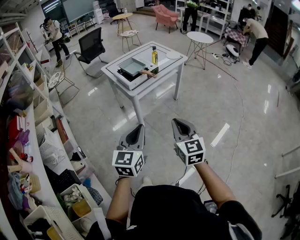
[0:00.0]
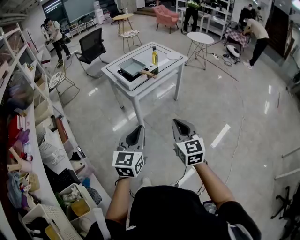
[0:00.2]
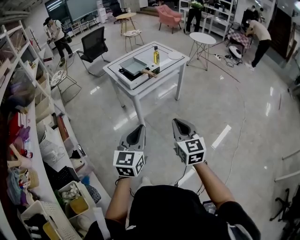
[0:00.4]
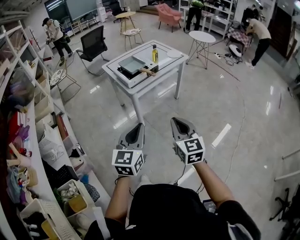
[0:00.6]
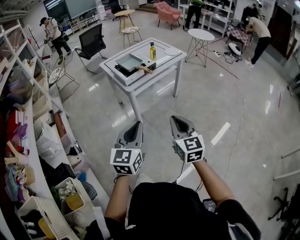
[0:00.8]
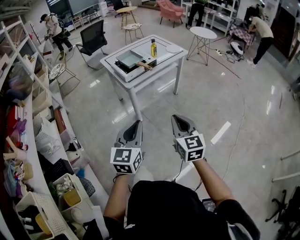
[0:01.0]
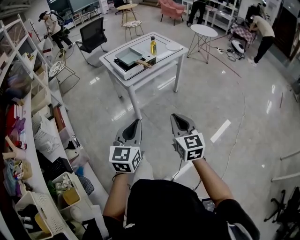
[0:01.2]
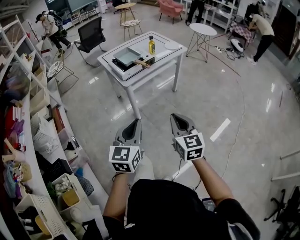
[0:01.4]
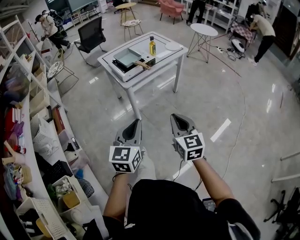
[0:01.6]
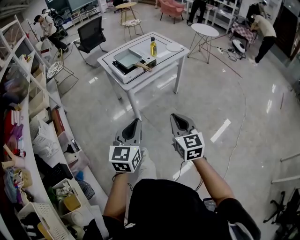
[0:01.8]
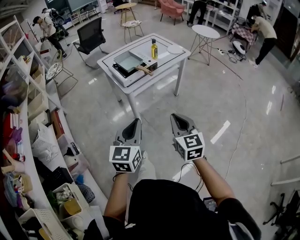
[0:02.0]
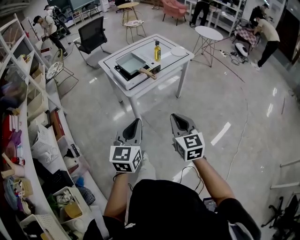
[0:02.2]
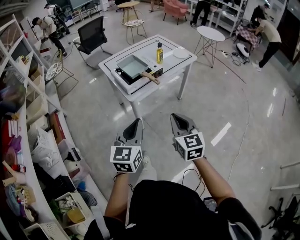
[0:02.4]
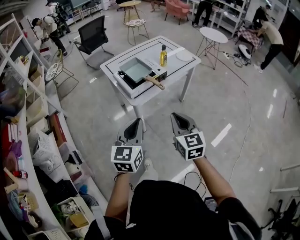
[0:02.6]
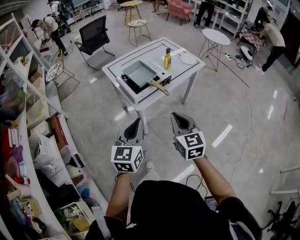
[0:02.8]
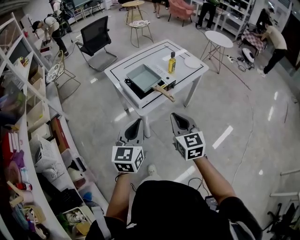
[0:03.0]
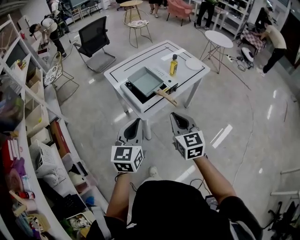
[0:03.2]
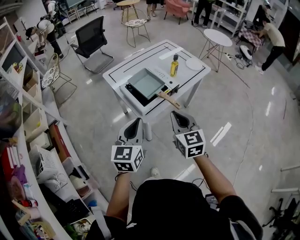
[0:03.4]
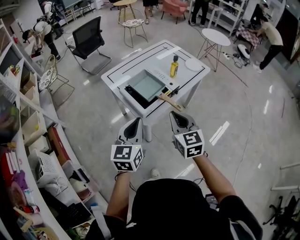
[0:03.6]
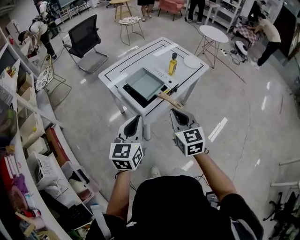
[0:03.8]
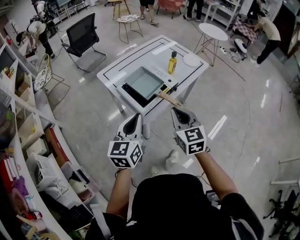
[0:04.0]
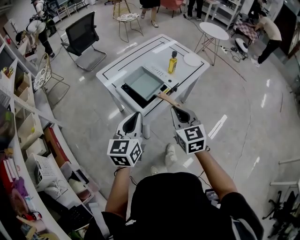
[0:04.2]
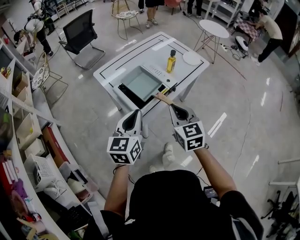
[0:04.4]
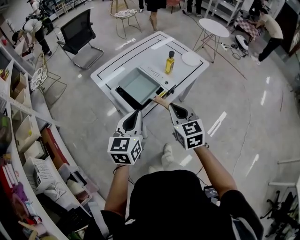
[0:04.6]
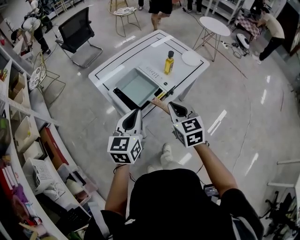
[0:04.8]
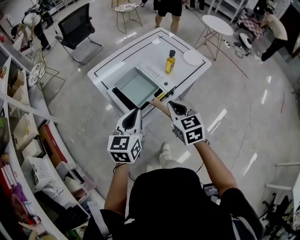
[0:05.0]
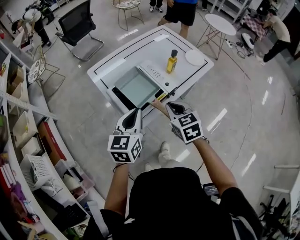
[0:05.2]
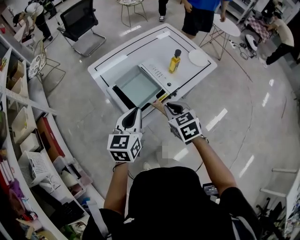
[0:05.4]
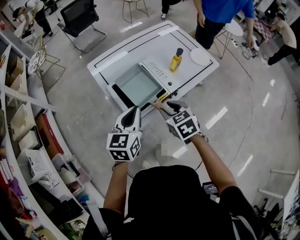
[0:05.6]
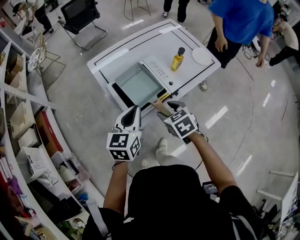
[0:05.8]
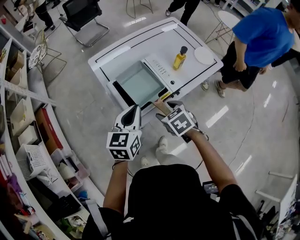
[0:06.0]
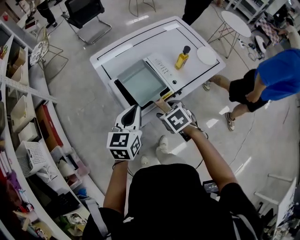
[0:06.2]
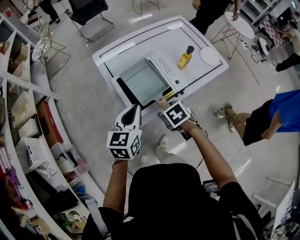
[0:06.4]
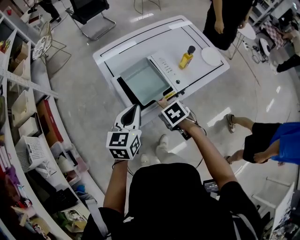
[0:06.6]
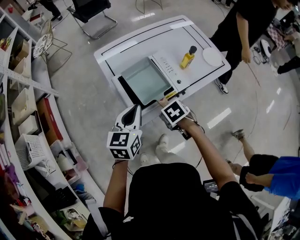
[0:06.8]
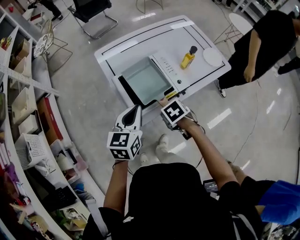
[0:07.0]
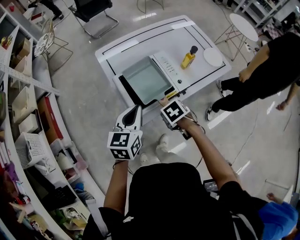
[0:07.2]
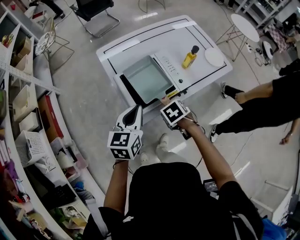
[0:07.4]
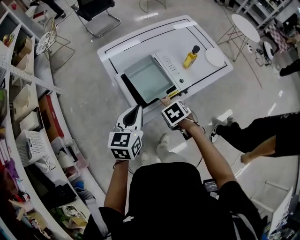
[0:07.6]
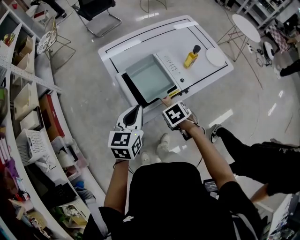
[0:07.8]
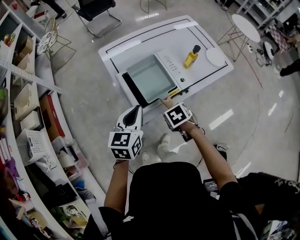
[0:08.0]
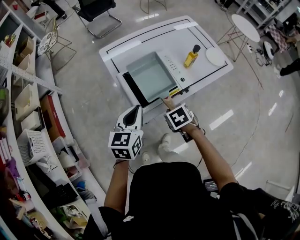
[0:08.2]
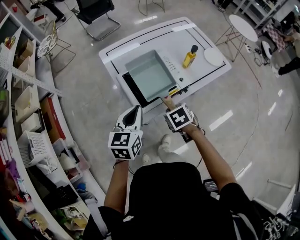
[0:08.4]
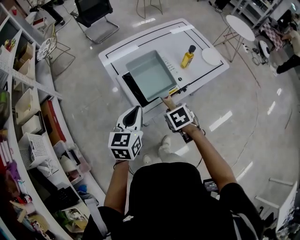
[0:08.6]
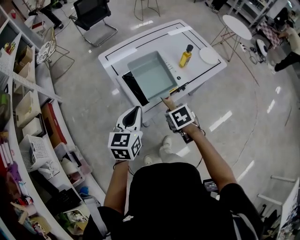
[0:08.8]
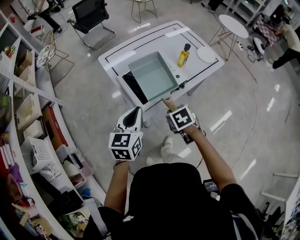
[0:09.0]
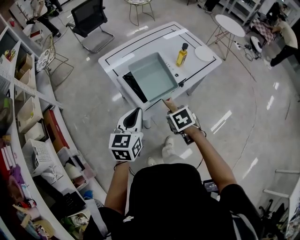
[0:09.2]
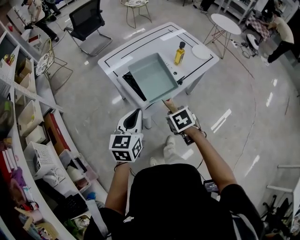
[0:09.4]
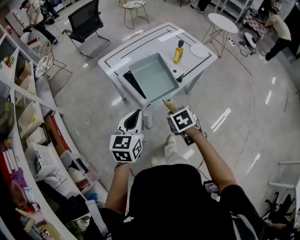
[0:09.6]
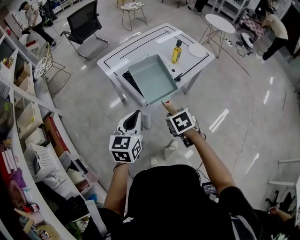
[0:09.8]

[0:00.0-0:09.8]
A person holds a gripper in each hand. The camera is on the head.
0:00.0 to 0:01.4: The two grippers go roughly 5 cm to the right.
0:01.4 to 0:02.8: The grippers both shift forward by some 25 cm.
0:02.8 to 0:04.2: The grippers both shift forward and to the left by roughly 20 cm.
0:04.2 to 0:05.6: Both grippers move forward and downward, approximately 15 cm. The right gripper rotates roughly 30 degrees, and opens its fingers.
0:05.6 to 0:07.0: The right gripper heads downward, covering about 10 cm, and tips its fingers downward by about 30 degrees.
0:07.0 to 0:08.4: The right gripper closes.
0:08.4 to 0:09.8: The grippers both shift backward by roughly 10 cm.

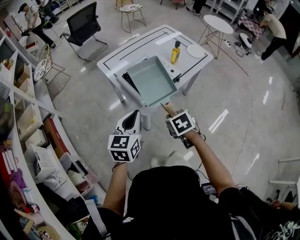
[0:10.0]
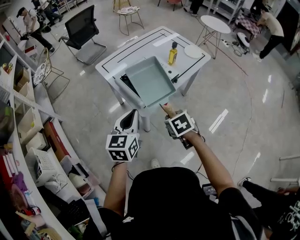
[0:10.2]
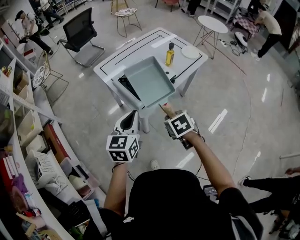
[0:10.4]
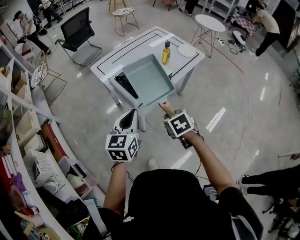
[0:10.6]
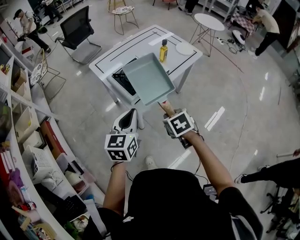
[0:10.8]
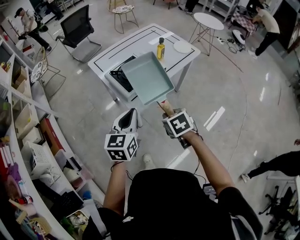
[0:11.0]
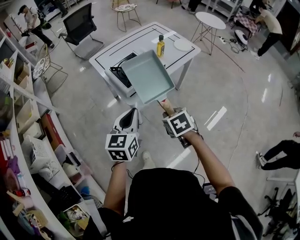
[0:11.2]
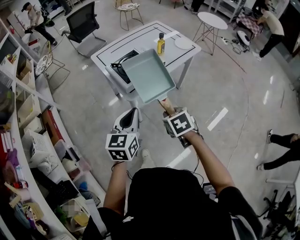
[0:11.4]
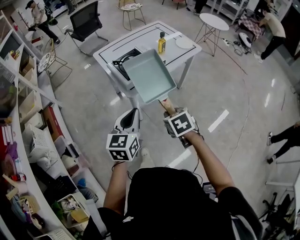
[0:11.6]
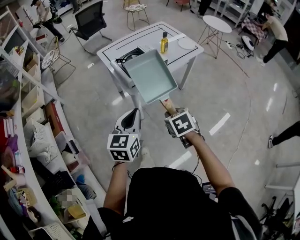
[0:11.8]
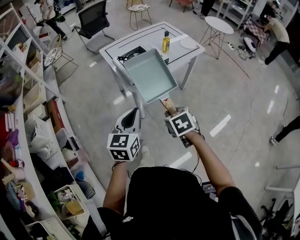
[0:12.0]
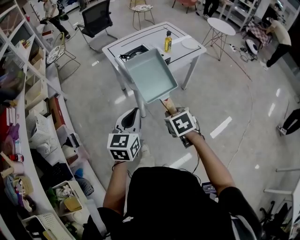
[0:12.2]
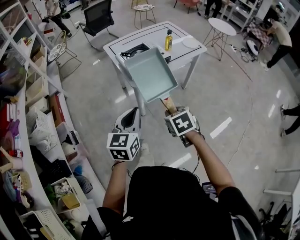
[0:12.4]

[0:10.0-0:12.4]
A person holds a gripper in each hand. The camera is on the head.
0:10.0 to 0:11.2: Both grippers travel together backward and to the right, approximately 10 cm.
0:11.2 to 0:12.4: Both grippers move backward, approximately 15 cm.

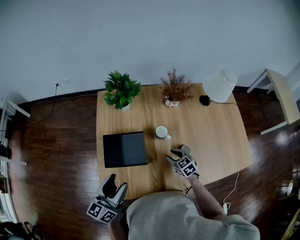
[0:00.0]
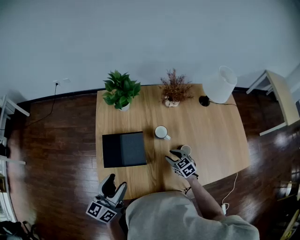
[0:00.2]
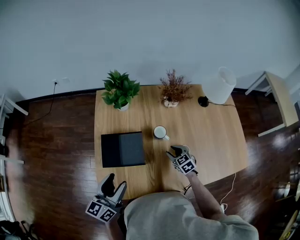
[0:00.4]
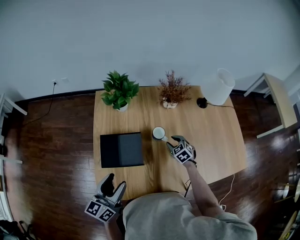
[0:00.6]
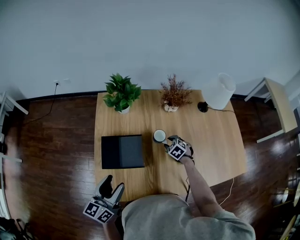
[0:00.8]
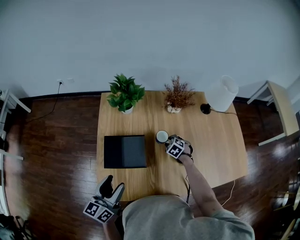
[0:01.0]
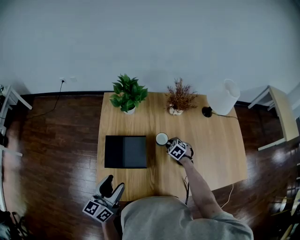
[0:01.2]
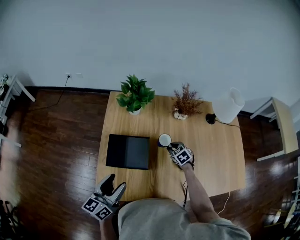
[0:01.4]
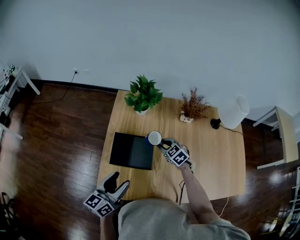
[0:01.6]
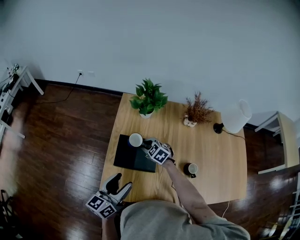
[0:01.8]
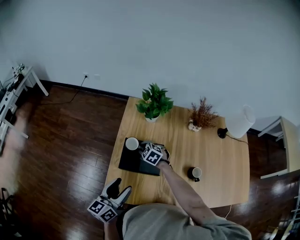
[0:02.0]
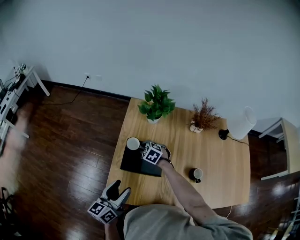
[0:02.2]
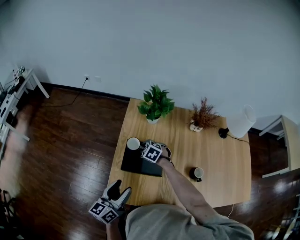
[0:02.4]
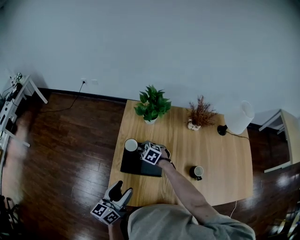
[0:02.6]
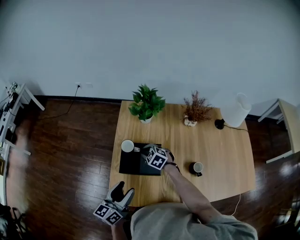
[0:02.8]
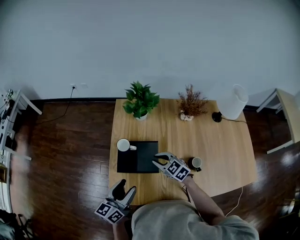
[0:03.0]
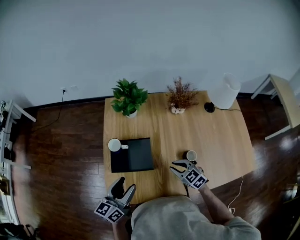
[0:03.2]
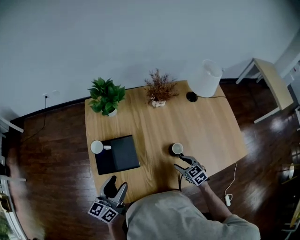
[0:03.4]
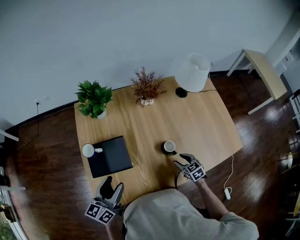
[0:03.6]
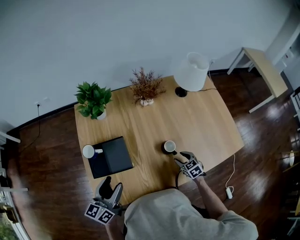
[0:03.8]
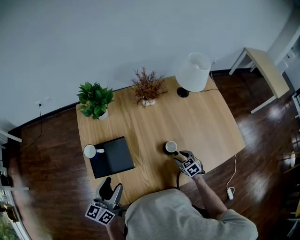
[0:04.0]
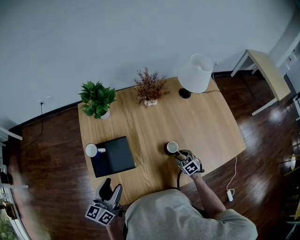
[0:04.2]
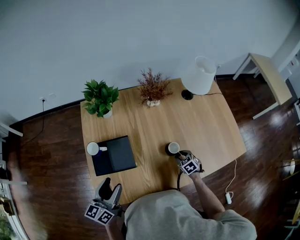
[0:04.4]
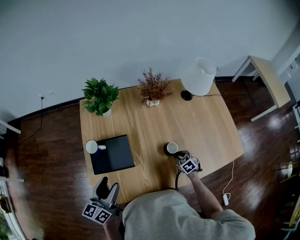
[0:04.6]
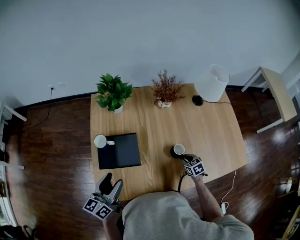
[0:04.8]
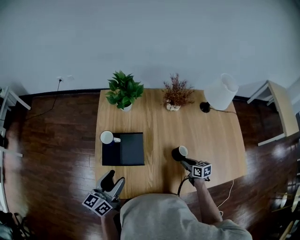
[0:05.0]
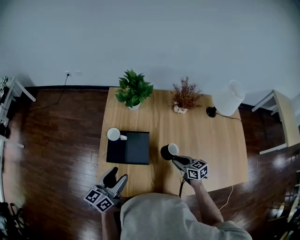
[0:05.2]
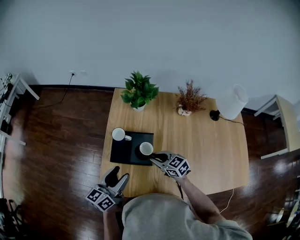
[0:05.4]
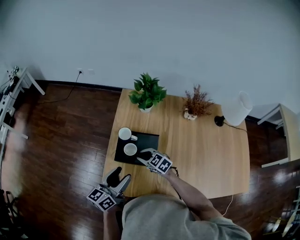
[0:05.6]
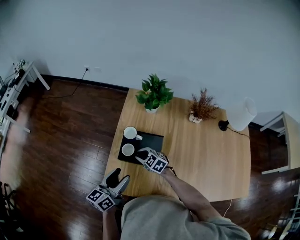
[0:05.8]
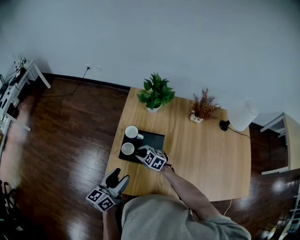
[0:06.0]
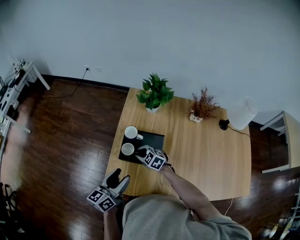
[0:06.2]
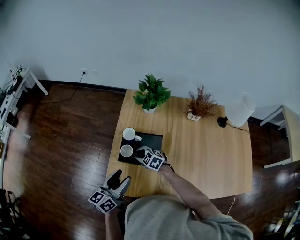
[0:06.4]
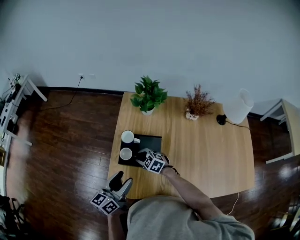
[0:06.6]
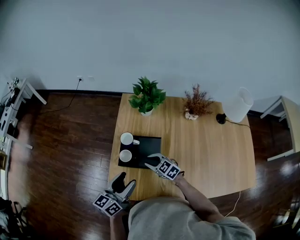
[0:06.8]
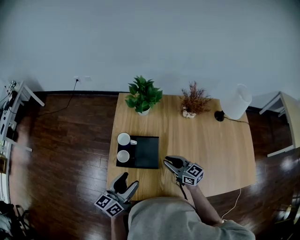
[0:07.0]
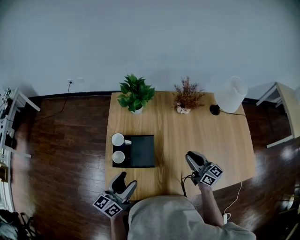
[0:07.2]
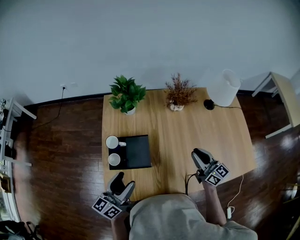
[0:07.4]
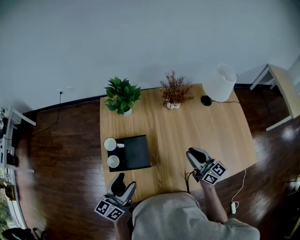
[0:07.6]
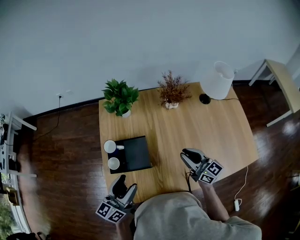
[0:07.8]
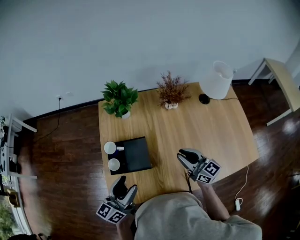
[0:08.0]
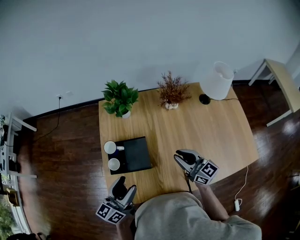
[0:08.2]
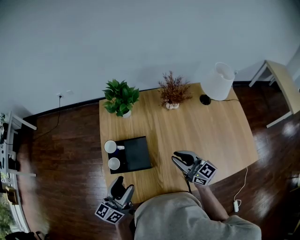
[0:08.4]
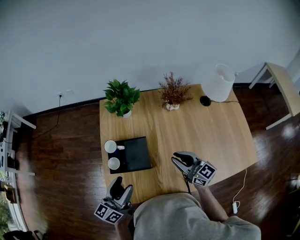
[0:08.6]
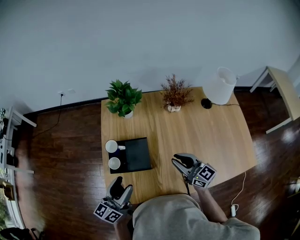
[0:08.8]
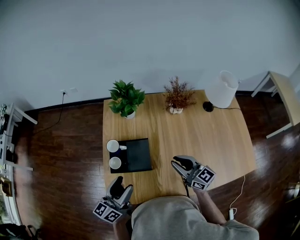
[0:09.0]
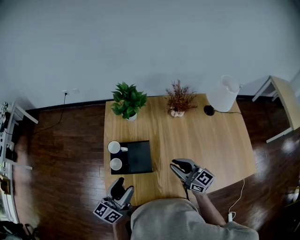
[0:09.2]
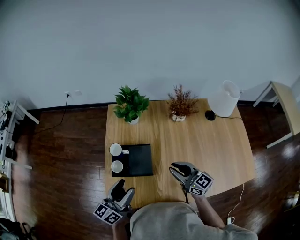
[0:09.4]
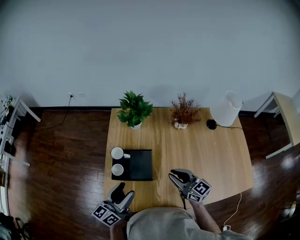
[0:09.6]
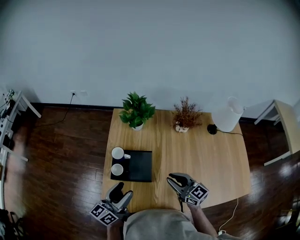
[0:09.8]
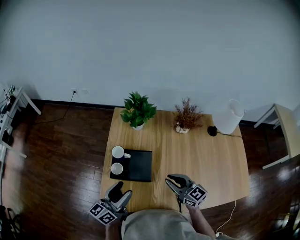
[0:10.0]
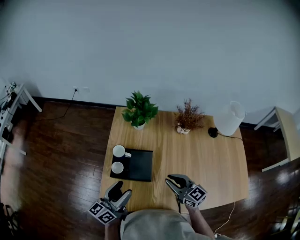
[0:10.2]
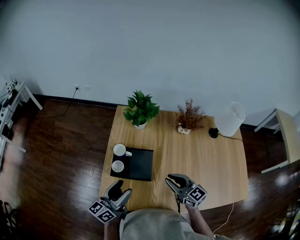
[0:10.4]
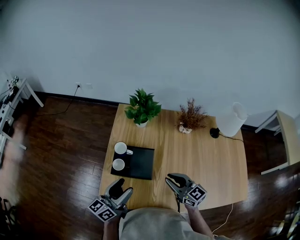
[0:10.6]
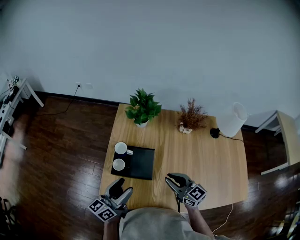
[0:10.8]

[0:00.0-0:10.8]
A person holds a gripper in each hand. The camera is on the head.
0:00.0 to 0:01.6: The right gripper shifts about 20 cm to the left, forward and upward, and rotates roughly 20 degrees.
0:01.6 to 0:03.0: The right gripper goes approximately 10 cm to the left and backward.
0:03.0 to 0:04.6: The right gripper ends up some 35 cm from where it was, swivels some 40 degrees, and opens and closes again.
0:04.6 to 0:06.2: The right gripper changes place by about 40 cm, and changes its angle by about 60 degrees, while the left gripper ends up about 10 cm from where it was.
0:06.2 to 0:07.8: The right gripper changes place by roughly 35 cm, and points its fingers roughly 40 degrees further upward, while the left gripper moves about 10 cm.
0:07.8 to 0:09.2: The right gripper goes roughly 5 cm to the left.
0:09.2 to 0:10.8: The grippers make only small movements.

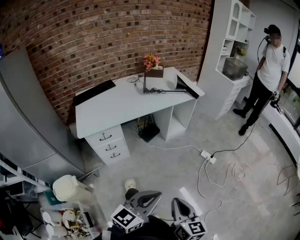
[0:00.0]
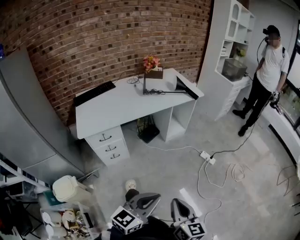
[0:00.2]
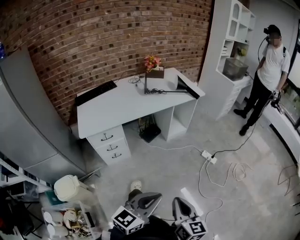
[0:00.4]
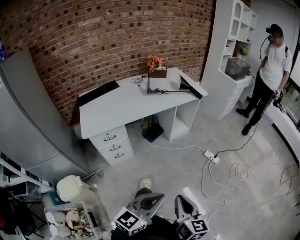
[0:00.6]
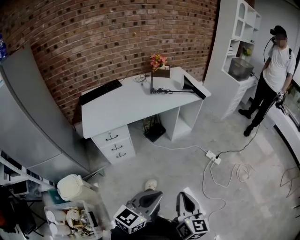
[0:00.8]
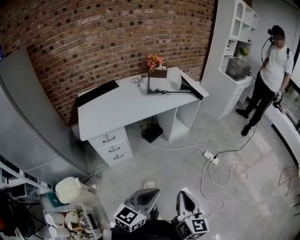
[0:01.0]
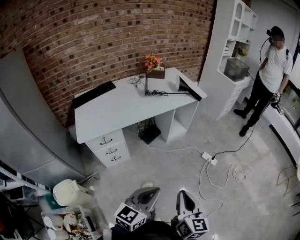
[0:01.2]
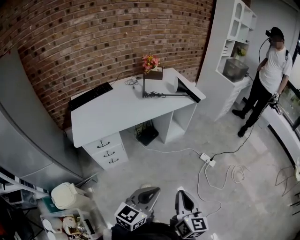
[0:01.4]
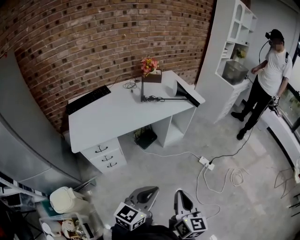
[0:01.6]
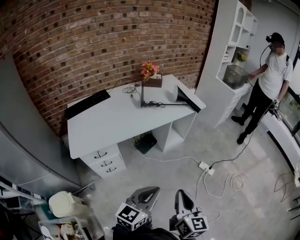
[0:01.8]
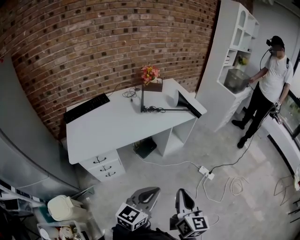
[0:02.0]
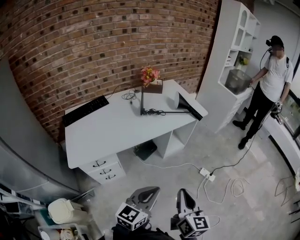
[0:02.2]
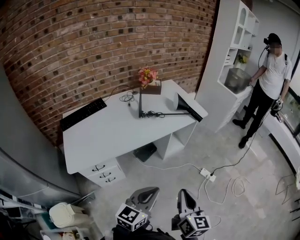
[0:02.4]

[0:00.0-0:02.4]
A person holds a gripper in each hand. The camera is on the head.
0:00.0 to 0:01.2: Both grippers move forward, about 5 cm.
0:01.2 to 0:02.4: The grippers both shift forward by approximately 20 cm.
